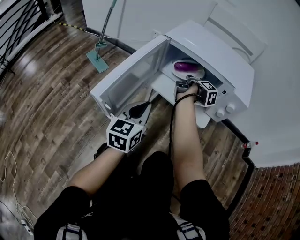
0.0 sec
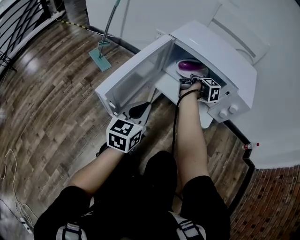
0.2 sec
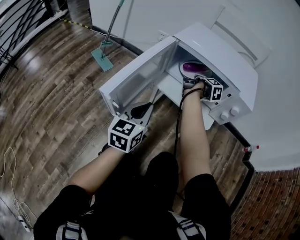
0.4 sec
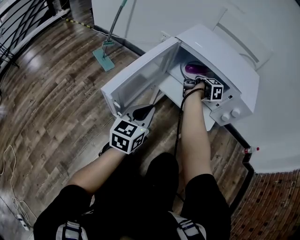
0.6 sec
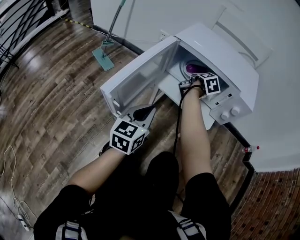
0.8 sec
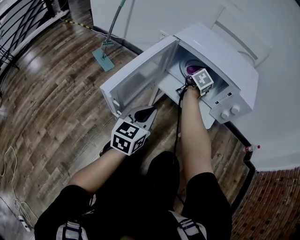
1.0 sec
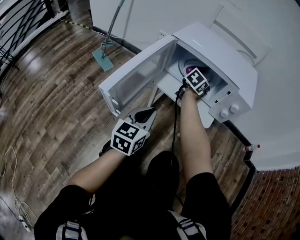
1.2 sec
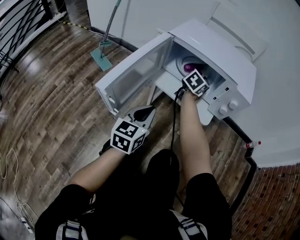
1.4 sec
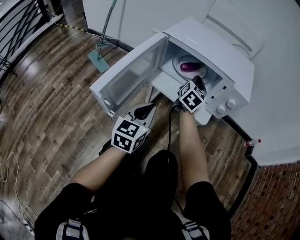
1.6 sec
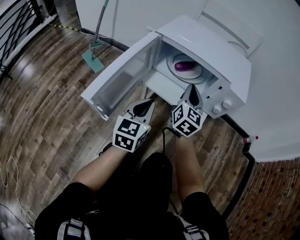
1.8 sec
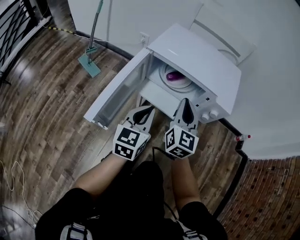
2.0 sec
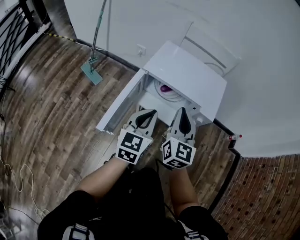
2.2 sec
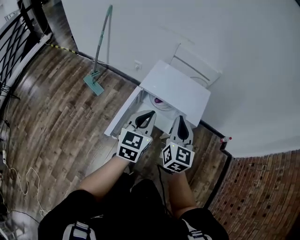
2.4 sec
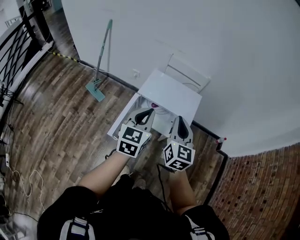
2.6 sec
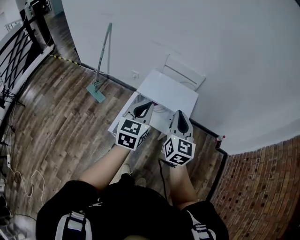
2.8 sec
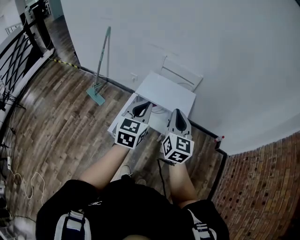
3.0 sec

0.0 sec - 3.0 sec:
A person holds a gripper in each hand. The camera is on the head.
0.0 sec - 1.6 sec: The right gripper is displaced upward by some 5 cm, rolls counterclockwise, seen from behind, by approximately 70 degrees, and opens, then closes once more.
1.6 sec - 3.0 sec: The left gripper moves upward, roughly 50 cm; the right gripper heads upward and backward, covering about 60 cm.

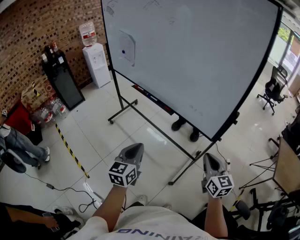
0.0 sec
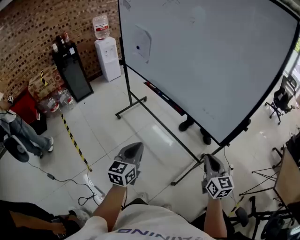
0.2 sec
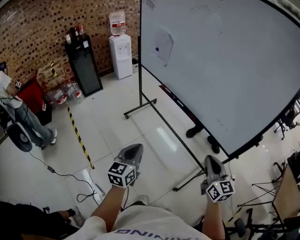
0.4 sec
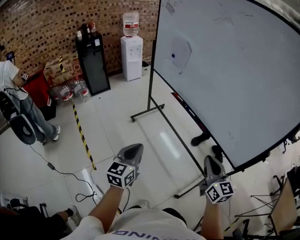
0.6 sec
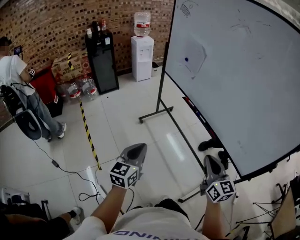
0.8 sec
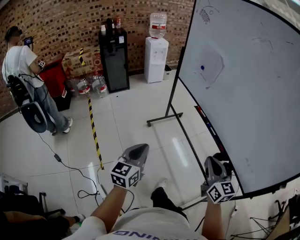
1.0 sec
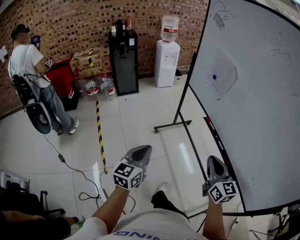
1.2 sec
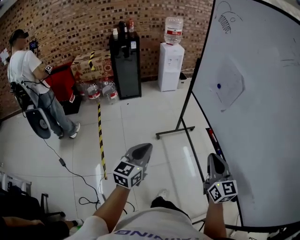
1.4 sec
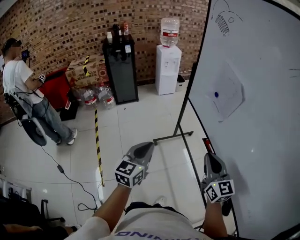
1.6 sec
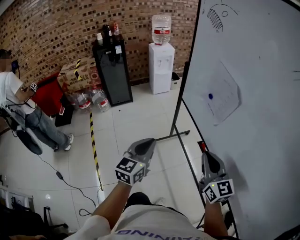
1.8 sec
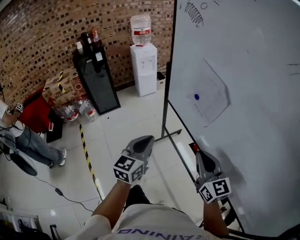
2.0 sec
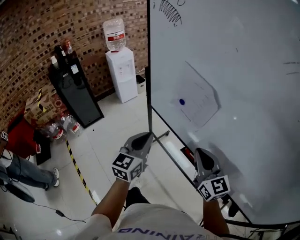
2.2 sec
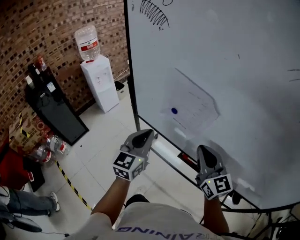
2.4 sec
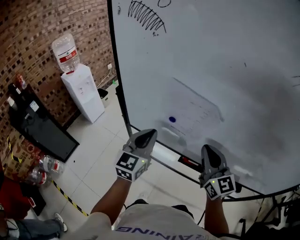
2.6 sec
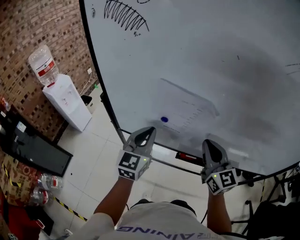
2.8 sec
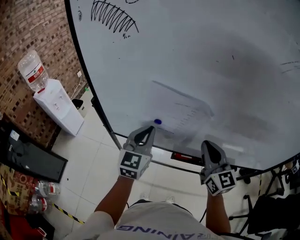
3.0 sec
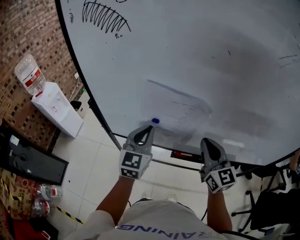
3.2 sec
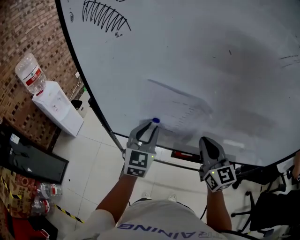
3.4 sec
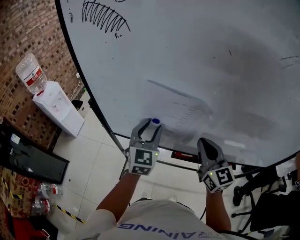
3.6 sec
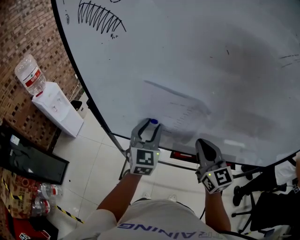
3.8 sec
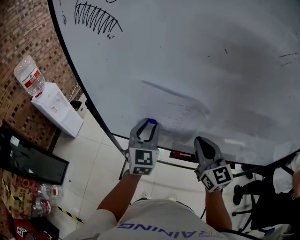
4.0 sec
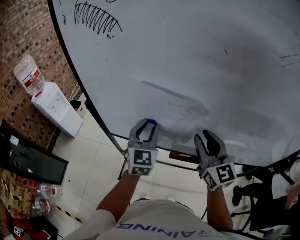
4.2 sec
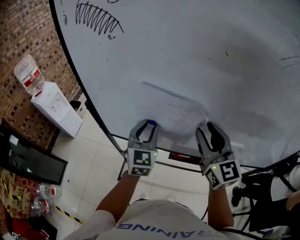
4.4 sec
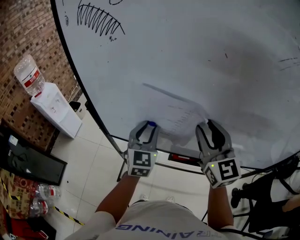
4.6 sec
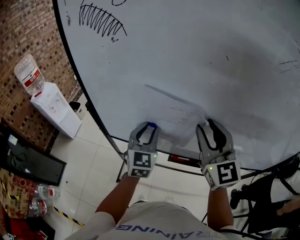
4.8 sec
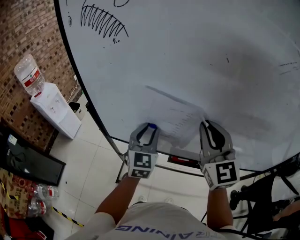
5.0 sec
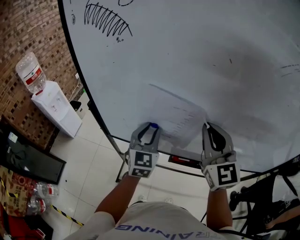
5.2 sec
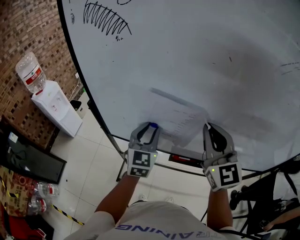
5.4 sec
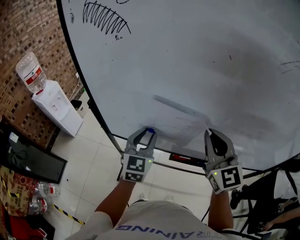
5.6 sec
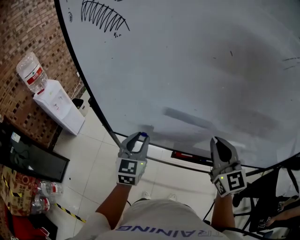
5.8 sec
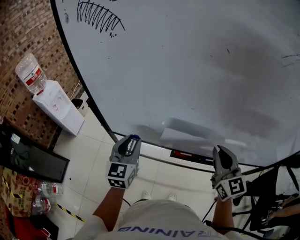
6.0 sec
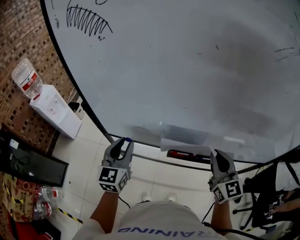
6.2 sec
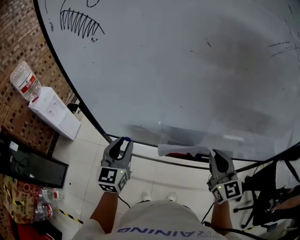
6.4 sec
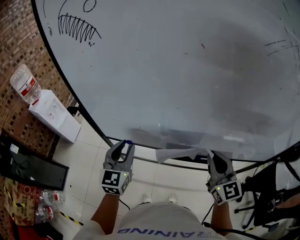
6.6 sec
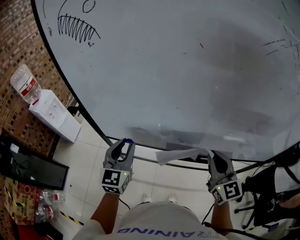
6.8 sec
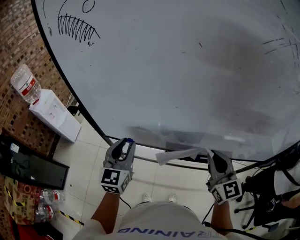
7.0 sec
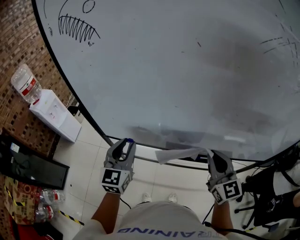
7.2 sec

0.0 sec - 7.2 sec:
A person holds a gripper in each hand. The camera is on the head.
0.0 sec - 1.4 sec: The two grippers travel together, about 50 cm. The right gripper rotates about 30 degrees, while the left gripper rotates some 20 degrees.
1.4 sec - 2.8 sec: The left gripper shifts by some 50 cm, and turns by about 50 degrees; the right gripper moves about 30 cm, and swivels some 50 degrees.
2.8 sec - 4.4 sec: The left gripper shifts by roughly 5 cm, and opens its fingers, while the right gripper heads upward, covering approximately 5 cm, and opens.
4.4 sec - 5.8 sec: The right gripper changes place by approximately 5 cm, and closes its fingers, while the left gripper changes place by about 5 cm.
5.8 sec - 7.2 sec: The right gripper travels to the right and downward by some 5 cm.

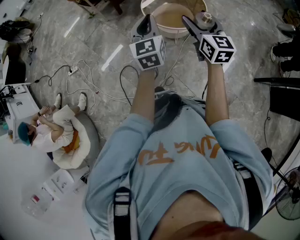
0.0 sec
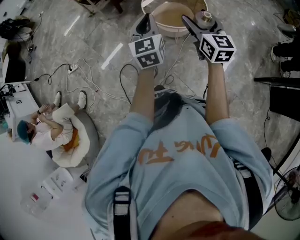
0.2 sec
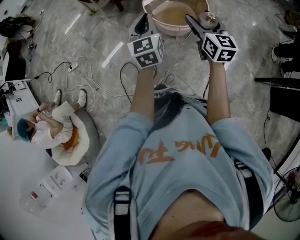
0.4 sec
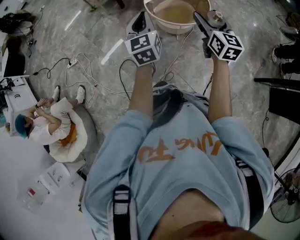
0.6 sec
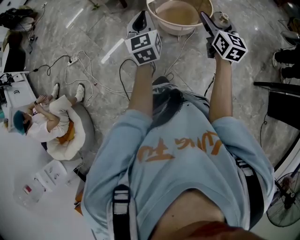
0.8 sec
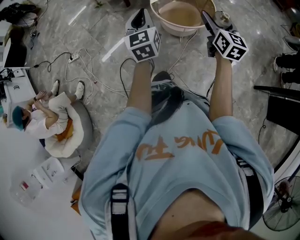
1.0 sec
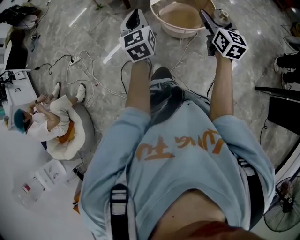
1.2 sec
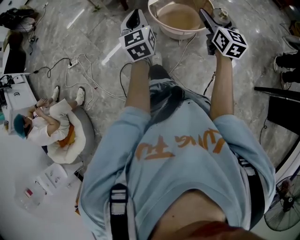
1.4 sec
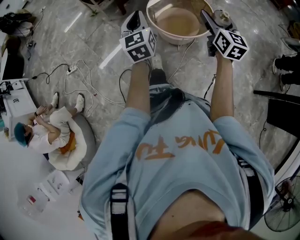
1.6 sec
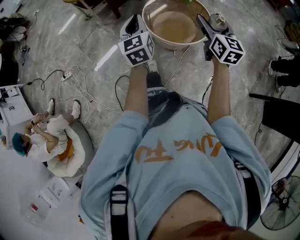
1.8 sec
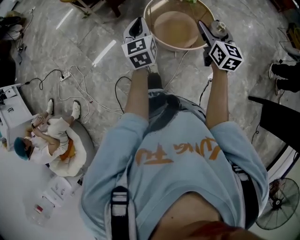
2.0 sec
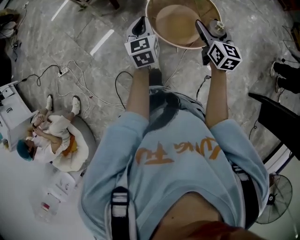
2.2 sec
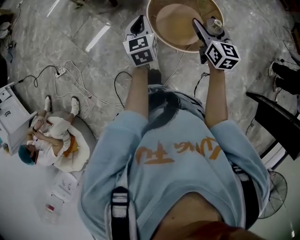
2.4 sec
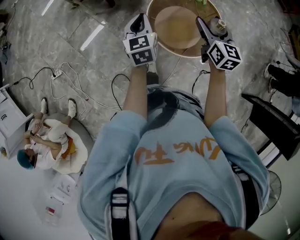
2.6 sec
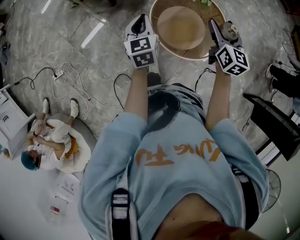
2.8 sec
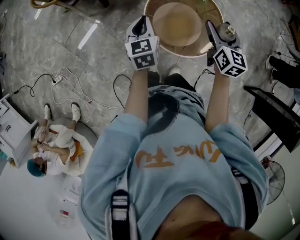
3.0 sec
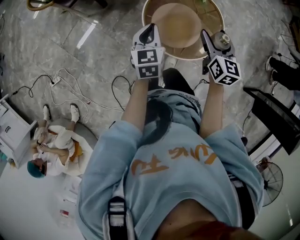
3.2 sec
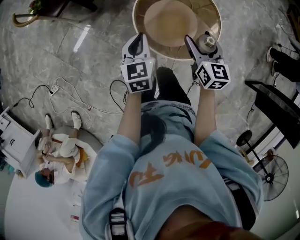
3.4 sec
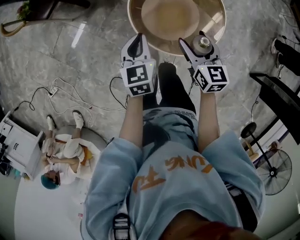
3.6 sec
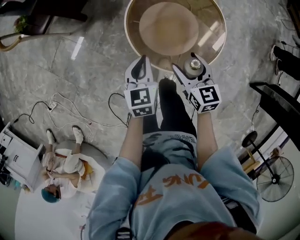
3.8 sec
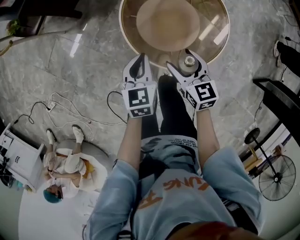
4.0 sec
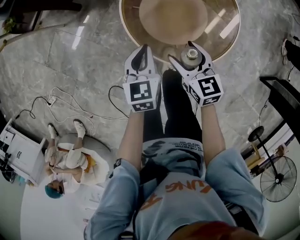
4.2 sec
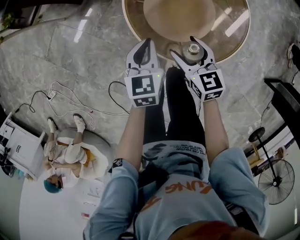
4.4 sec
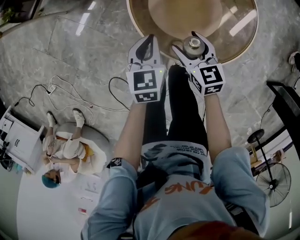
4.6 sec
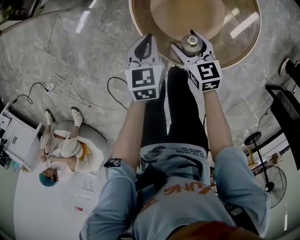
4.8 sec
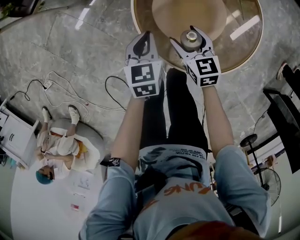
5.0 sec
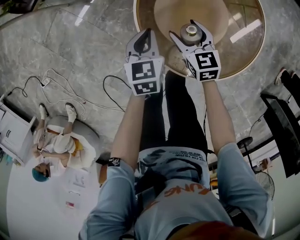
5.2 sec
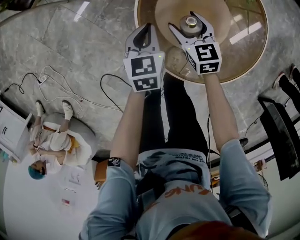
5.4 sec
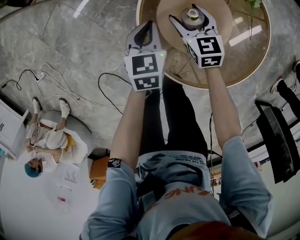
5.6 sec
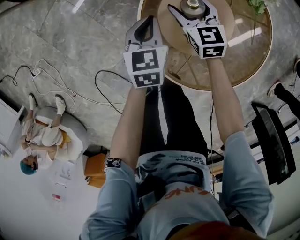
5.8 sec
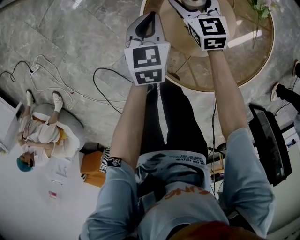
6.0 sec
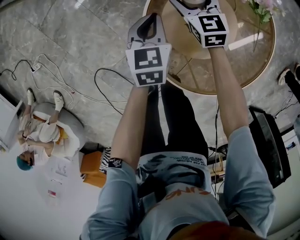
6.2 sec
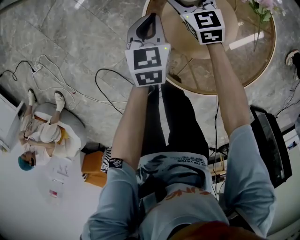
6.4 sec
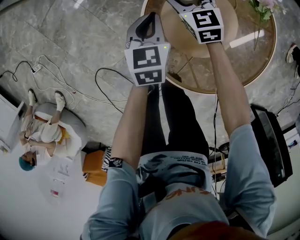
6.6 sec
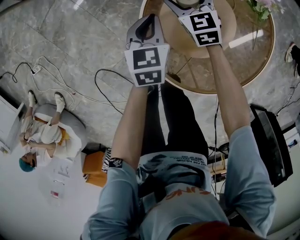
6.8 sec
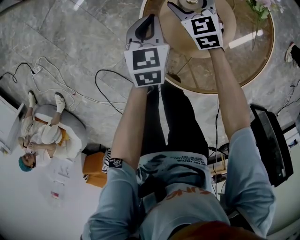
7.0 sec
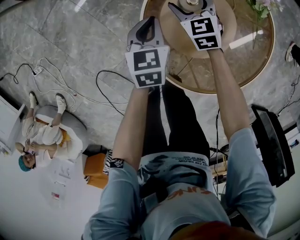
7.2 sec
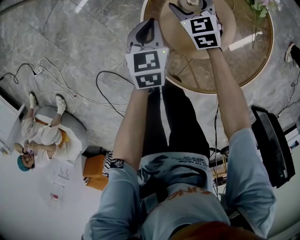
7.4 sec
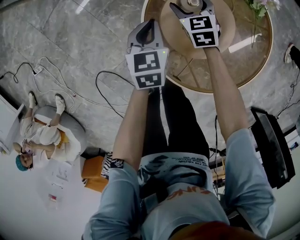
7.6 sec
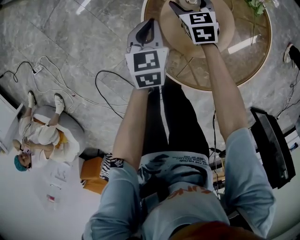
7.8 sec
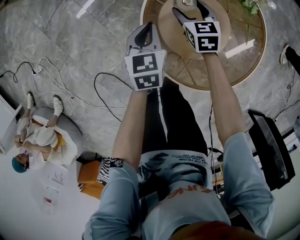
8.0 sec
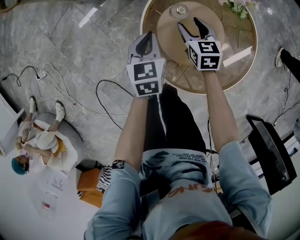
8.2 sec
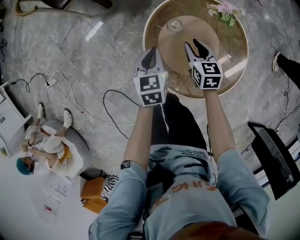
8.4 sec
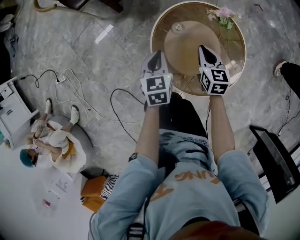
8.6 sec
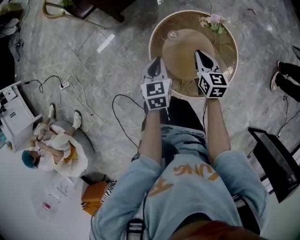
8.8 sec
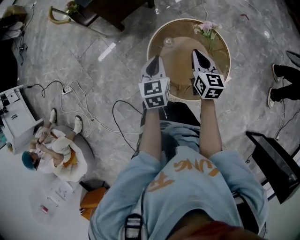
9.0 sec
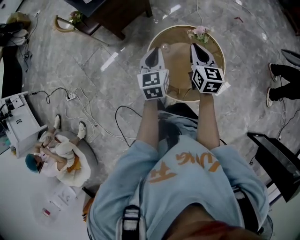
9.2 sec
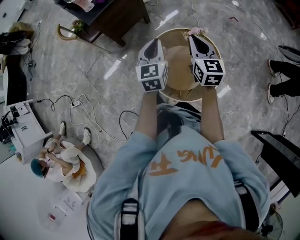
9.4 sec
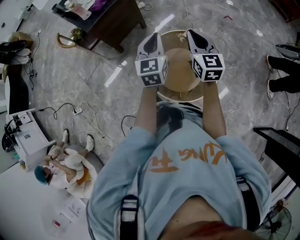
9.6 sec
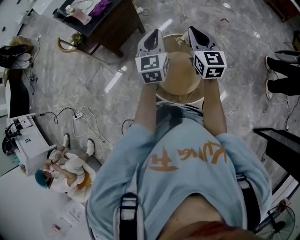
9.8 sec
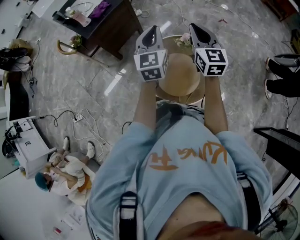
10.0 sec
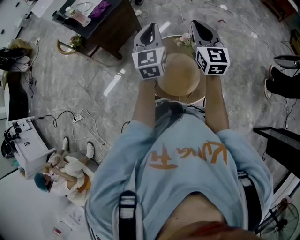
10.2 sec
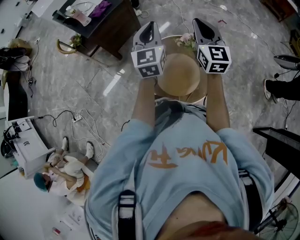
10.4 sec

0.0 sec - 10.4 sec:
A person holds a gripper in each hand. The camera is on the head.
0.0 sec - 1.4 sec: The left gripper travels to the left and forward by some 10 cm, while the right gripper moves forward, roughly 5 cm.
1.4 sec - 3.0 sec: The left gripper heads forward and downward, covering some 50 cm, and turns by about 20 degrees. The right gripper moves forward, about 40 cm.
3.0 sec - 4.4 sec: The two grippers go about 30 cm downward. The right gripper rotates about 30 degrees.
4.4 sec - 6.0 sec: The left gripper goes about 20 cm forward and downward; the right gripper moves forward and downward, roughly 30 cm, and turns by some 20 degrees.
6.0 sec - 7.4 sec: There are only small adjustments of the grippers.
7.4 sec - 9.0 sec: The right gripper heads upward and backward, covering about 40 cm, swivels approximately 40 degrees, and closes its fingers. The left gripper moves upward, approximately 30 cm.
9.0 sec - 10.4 sec: Both grippers move upward, roughly 25 cm. The left gripper changes its angle by roughly 30 degrees. The right gripper changes its angle by approximately 30 degrees.

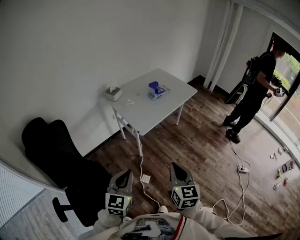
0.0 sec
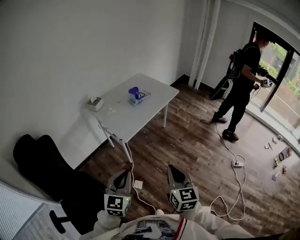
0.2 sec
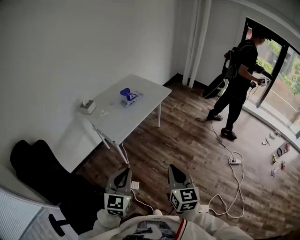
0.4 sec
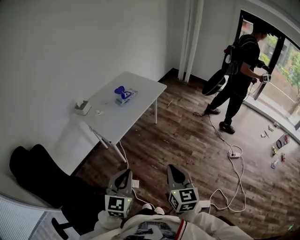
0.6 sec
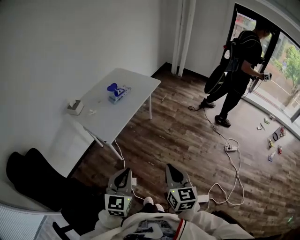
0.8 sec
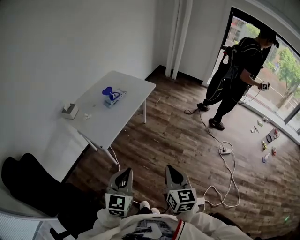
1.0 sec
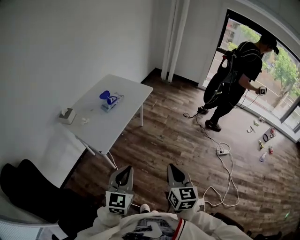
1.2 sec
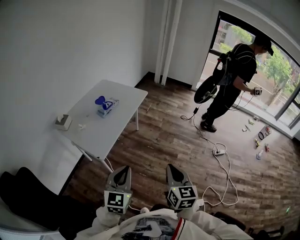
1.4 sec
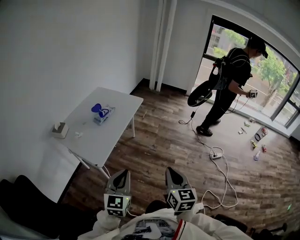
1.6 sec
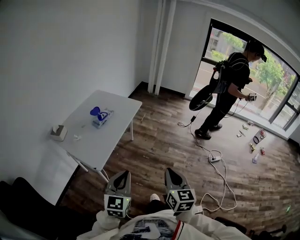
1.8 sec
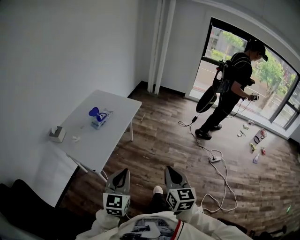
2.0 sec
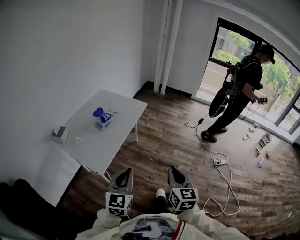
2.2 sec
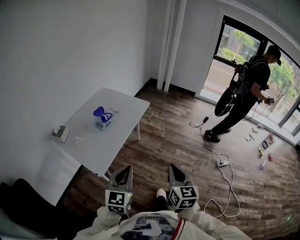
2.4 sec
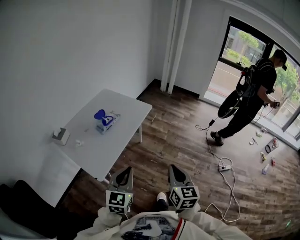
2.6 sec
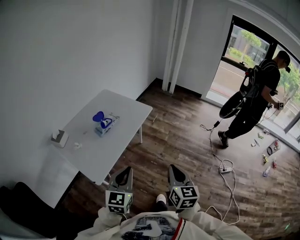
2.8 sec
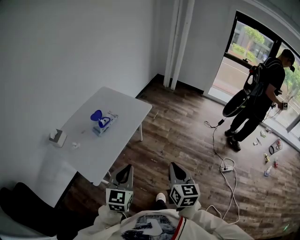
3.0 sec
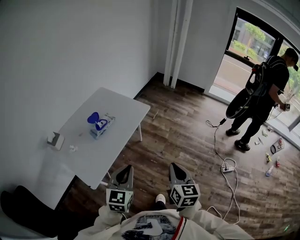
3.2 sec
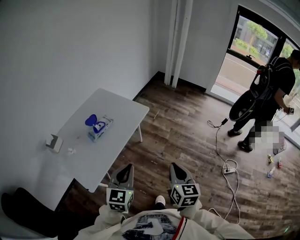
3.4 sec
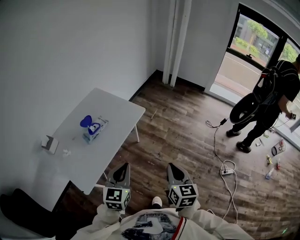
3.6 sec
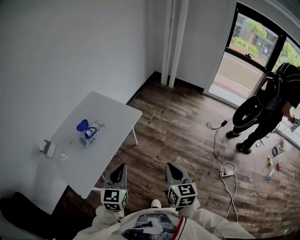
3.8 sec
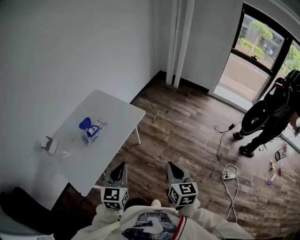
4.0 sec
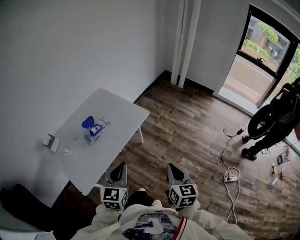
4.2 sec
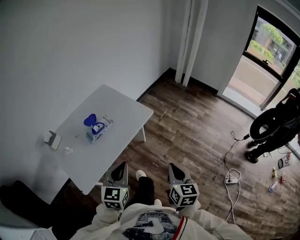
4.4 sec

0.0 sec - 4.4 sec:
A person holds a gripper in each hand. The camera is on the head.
0.0 sec - 1.4 sec: The left gripper heads forward and to the right, covering roughly 20 cm. Meanwhile the right gripper moves to the right and forward, roughly 15 cm, and rotates approximately 20 degrees.
1.4 sec - 3.0 sec: Both grippers travel together forward, approximately 25 cm.
3.0 sec - 4.4 sec: Both grippers travel together forward, roughly 15 cm.
